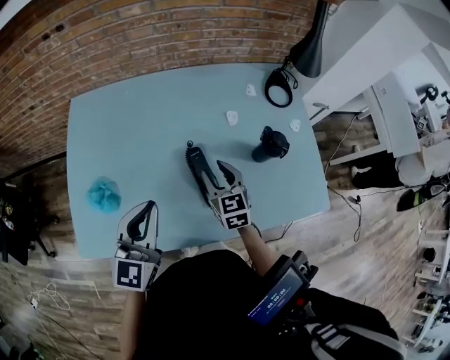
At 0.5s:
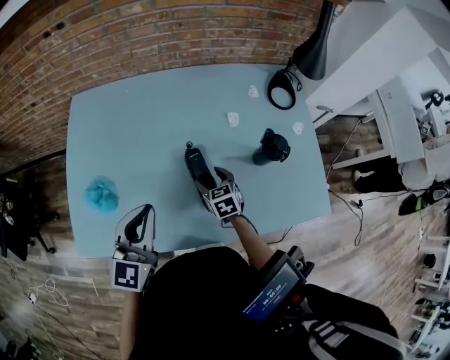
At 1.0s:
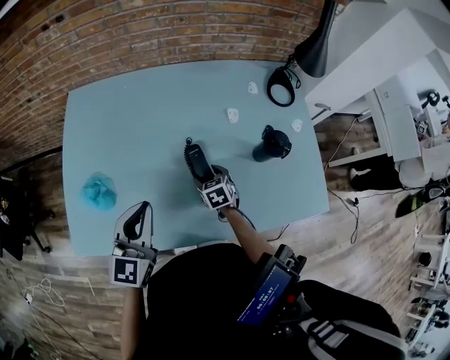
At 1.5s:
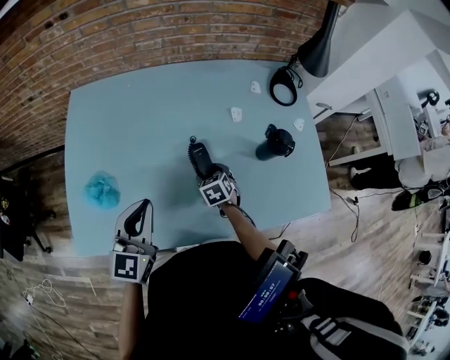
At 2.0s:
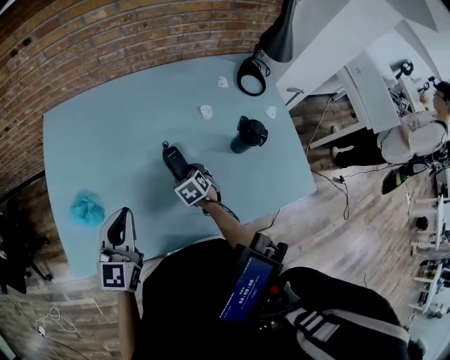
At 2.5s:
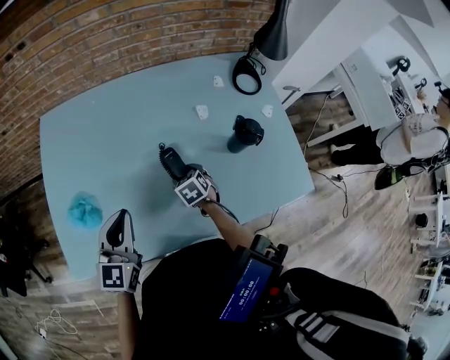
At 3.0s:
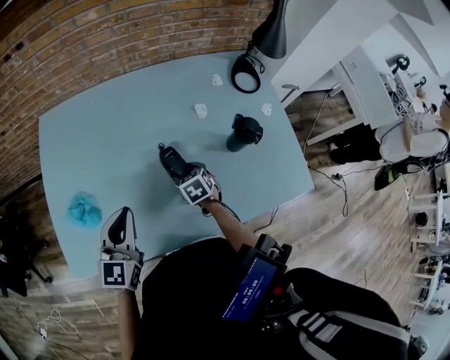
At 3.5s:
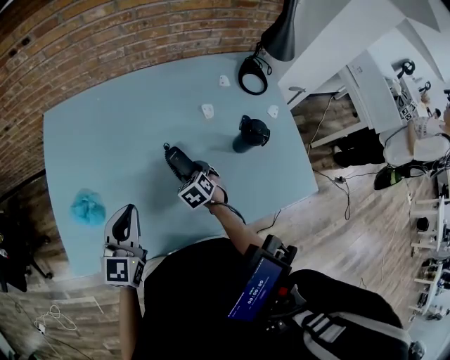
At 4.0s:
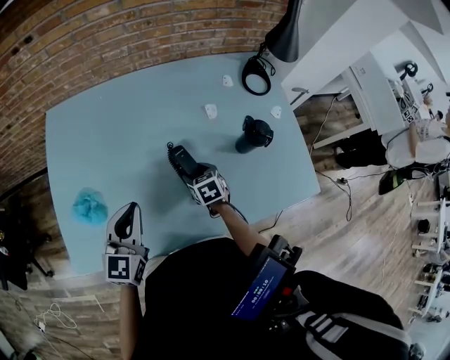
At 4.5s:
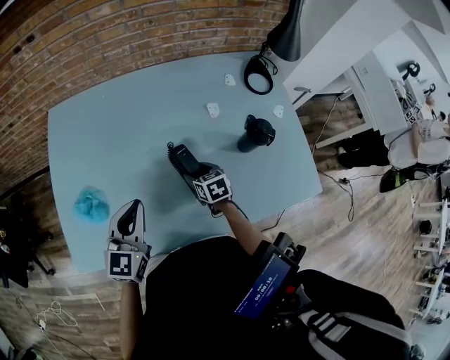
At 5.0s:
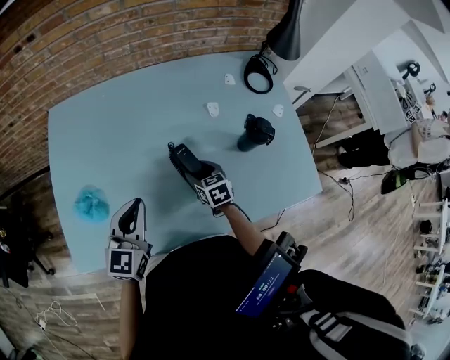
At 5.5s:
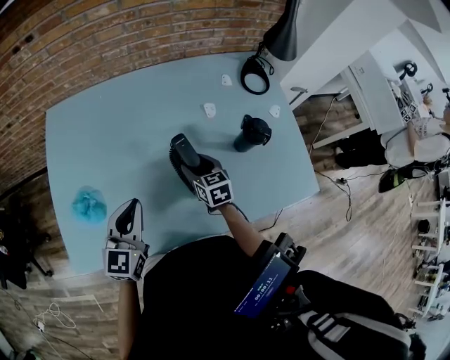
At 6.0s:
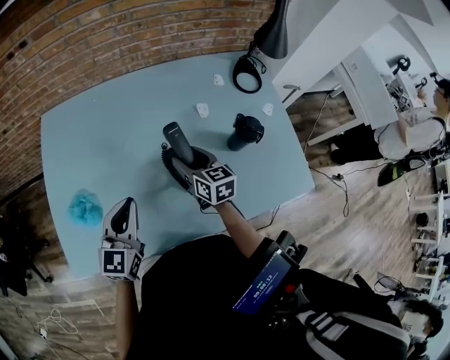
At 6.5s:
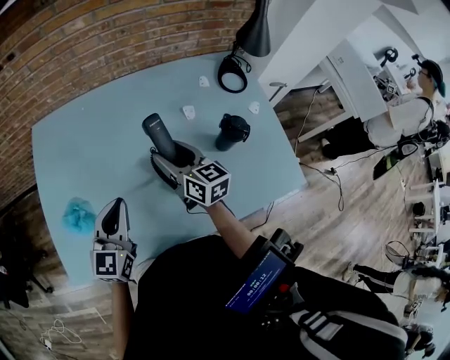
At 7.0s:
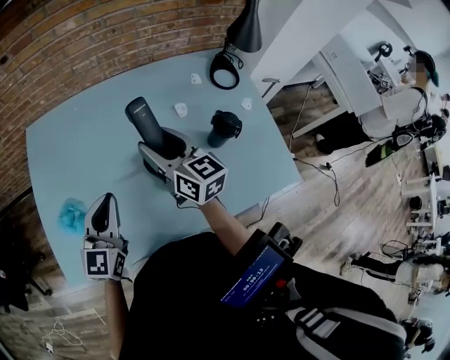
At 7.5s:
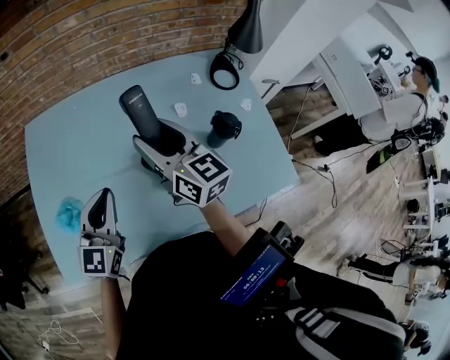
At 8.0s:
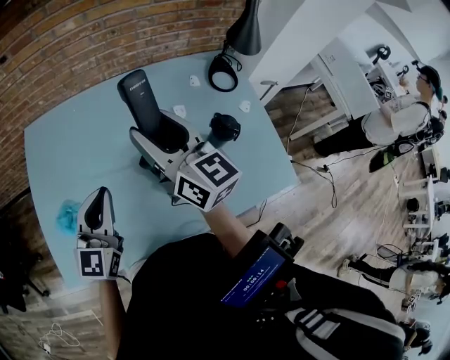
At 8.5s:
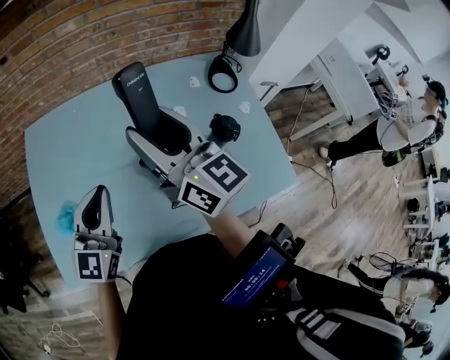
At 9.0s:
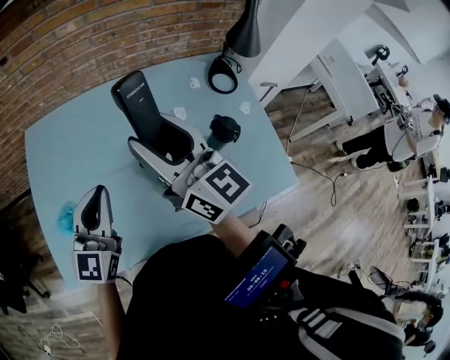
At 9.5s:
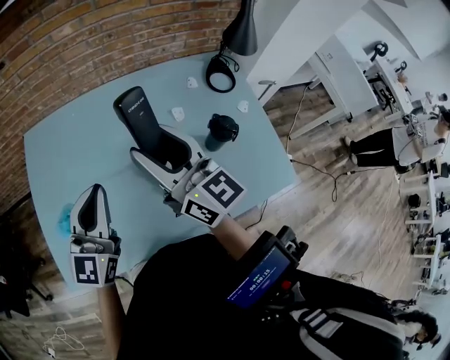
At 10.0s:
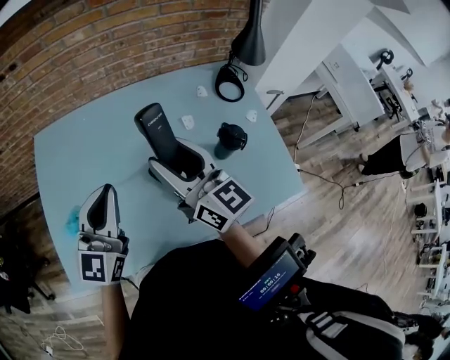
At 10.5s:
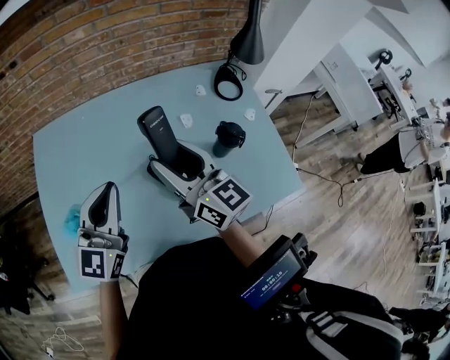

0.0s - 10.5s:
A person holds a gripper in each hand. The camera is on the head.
0.0s - 2.0s: The right gripper travels downward by about 15 cm, tips its fingers downward by some 30 degrees, and opens up. The left gripper is displaced downward by some 5 cm.
2.0s - 4.0s: The grippers make only small movements.
4.0s - 6.5s: The right gripper moves upward, approximately 20 cm, and tips its fingers upward by some 40 degrees.
6.5s - 8.5s: The right gripper moves upward, roughly 20 cm, and turns by some 20 degrees. Meanwhile the left gripper moves upward, some 10 cm.
8.5s - 10.5s: The right gripper heads downward, covering about 5 cm.

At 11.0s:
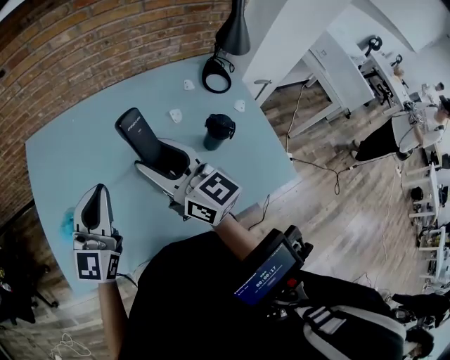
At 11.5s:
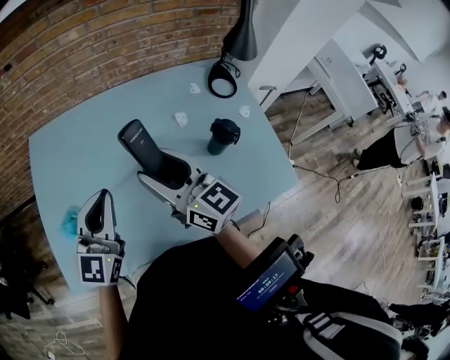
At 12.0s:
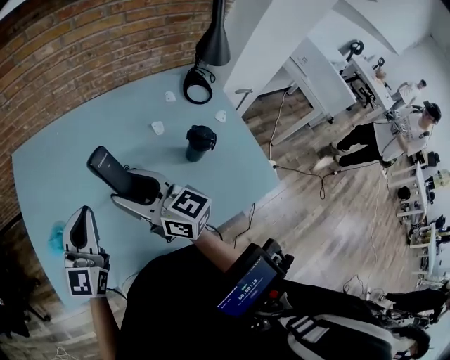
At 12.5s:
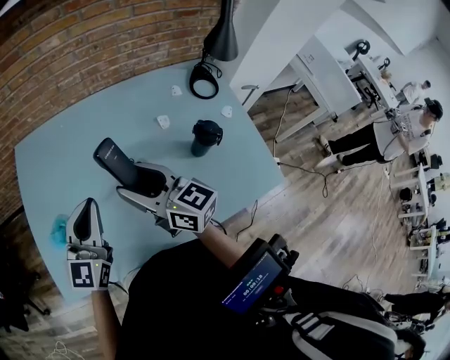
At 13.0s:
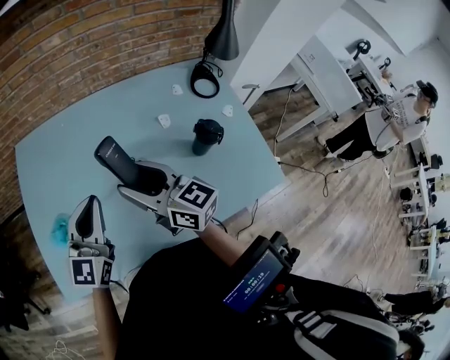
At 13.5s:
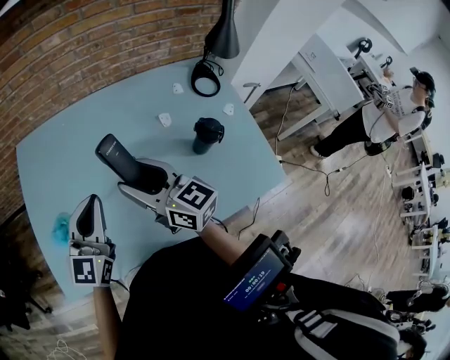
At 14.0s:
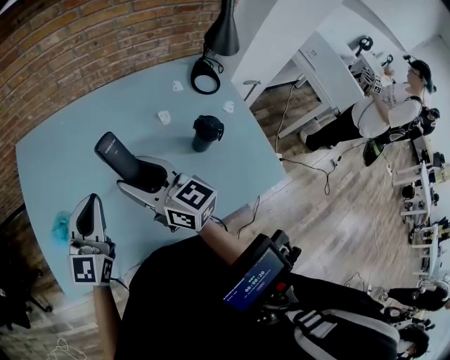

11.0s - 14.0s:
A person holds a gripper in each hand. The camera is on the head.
11.0s - 12.5s: The right gripper moves approximately 5 cm.
12.5s - 14.0s: The two grippers keep their place.

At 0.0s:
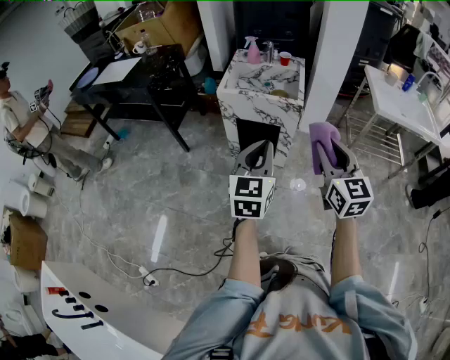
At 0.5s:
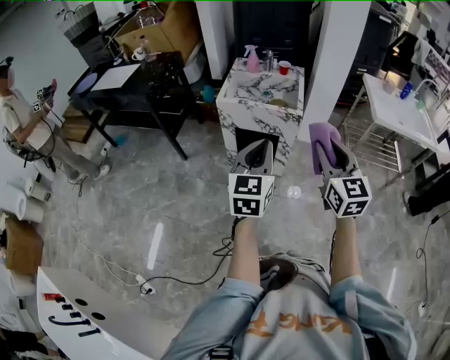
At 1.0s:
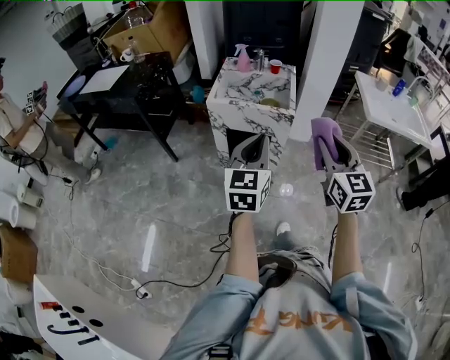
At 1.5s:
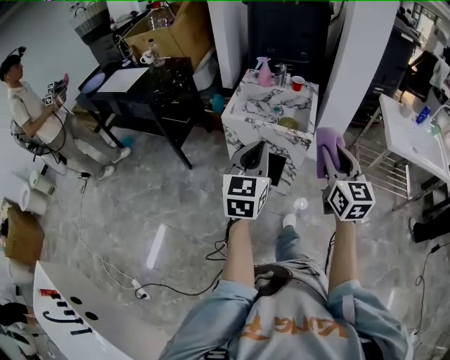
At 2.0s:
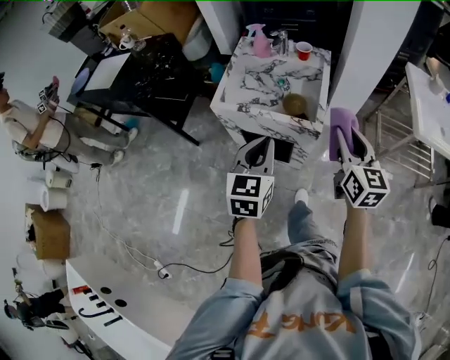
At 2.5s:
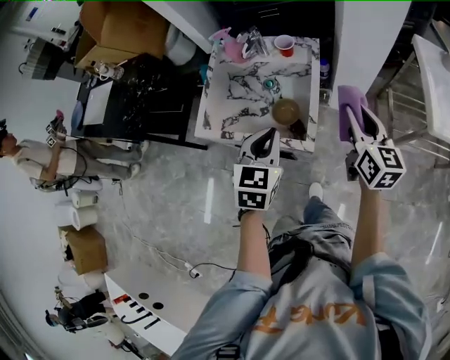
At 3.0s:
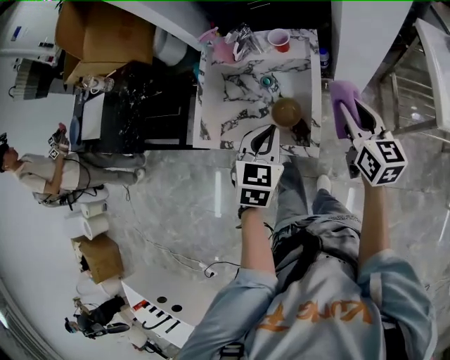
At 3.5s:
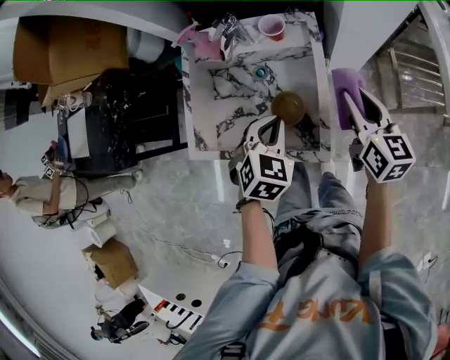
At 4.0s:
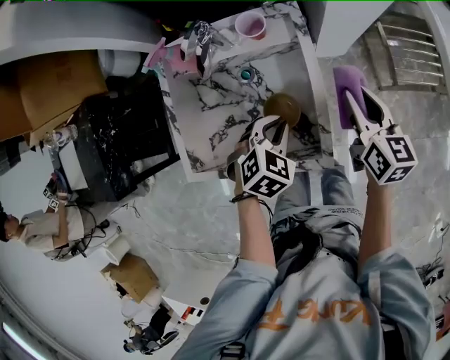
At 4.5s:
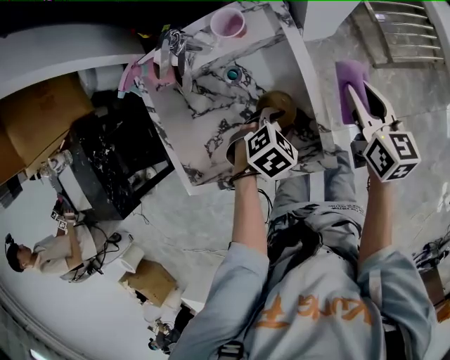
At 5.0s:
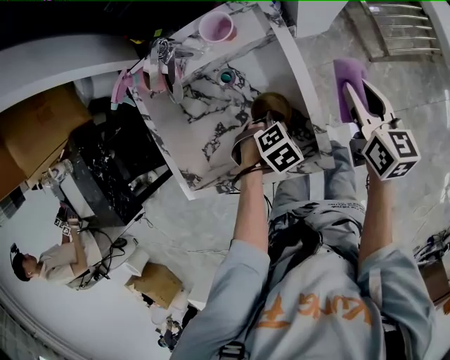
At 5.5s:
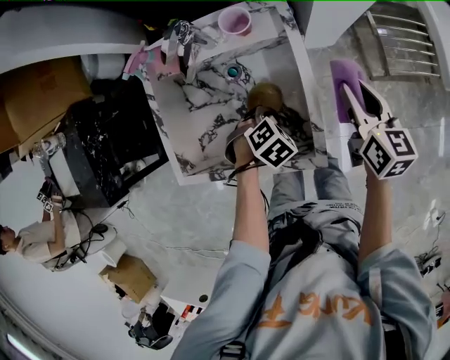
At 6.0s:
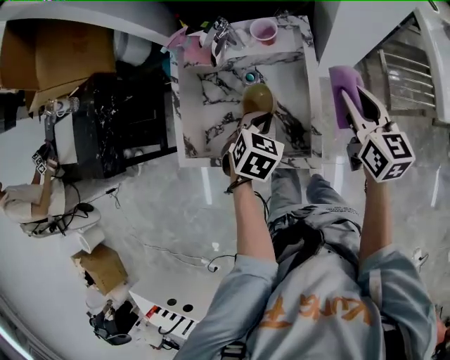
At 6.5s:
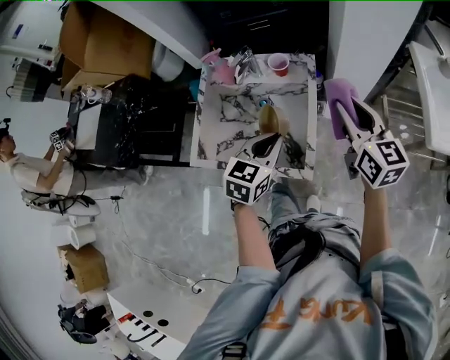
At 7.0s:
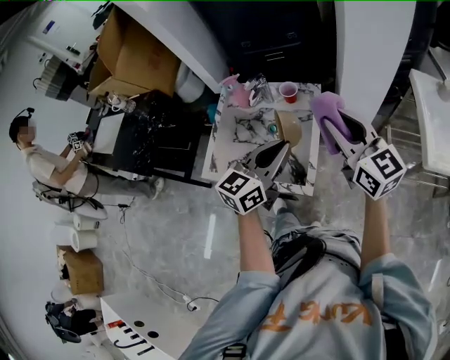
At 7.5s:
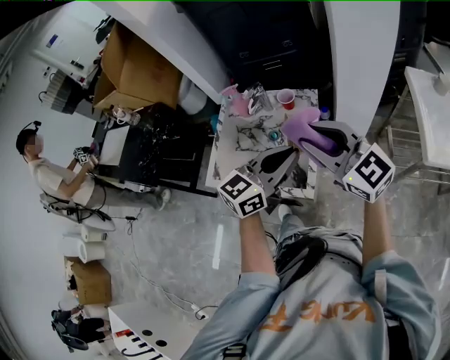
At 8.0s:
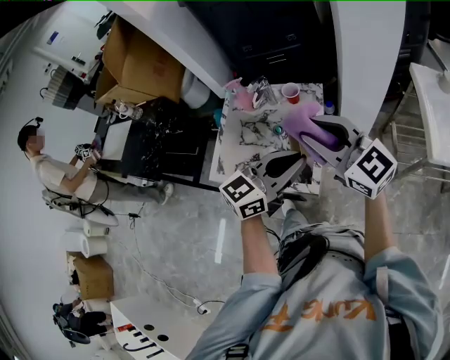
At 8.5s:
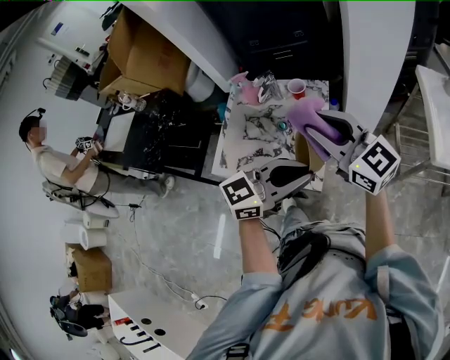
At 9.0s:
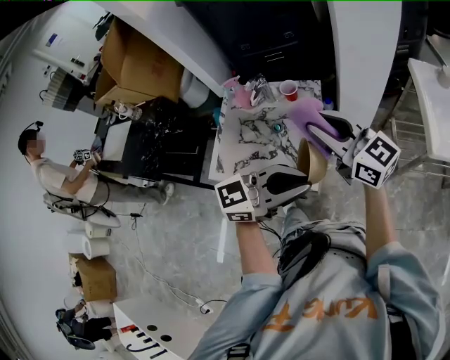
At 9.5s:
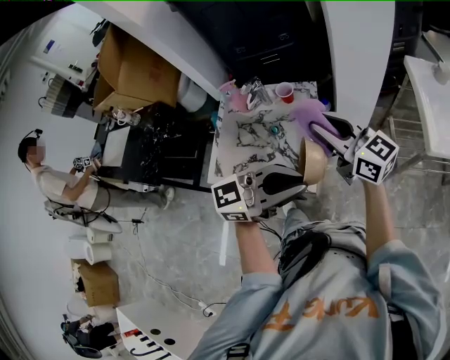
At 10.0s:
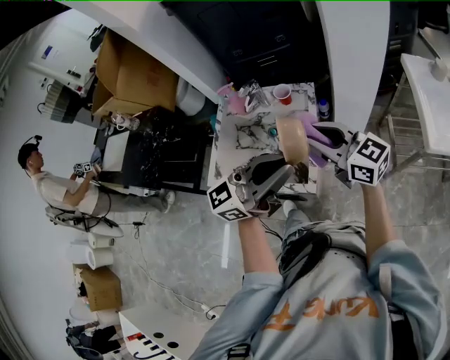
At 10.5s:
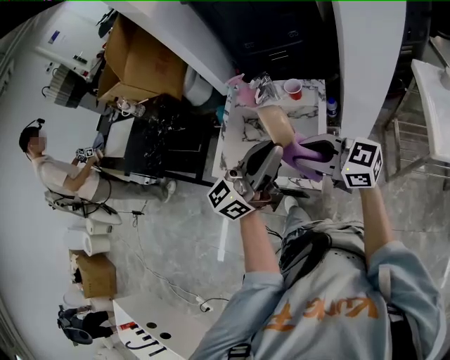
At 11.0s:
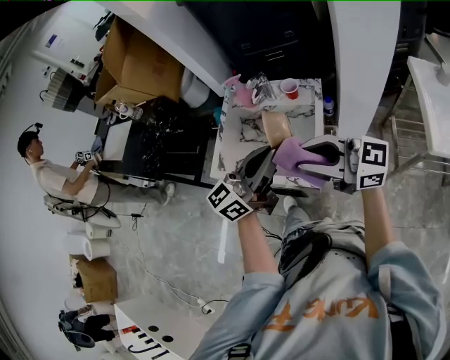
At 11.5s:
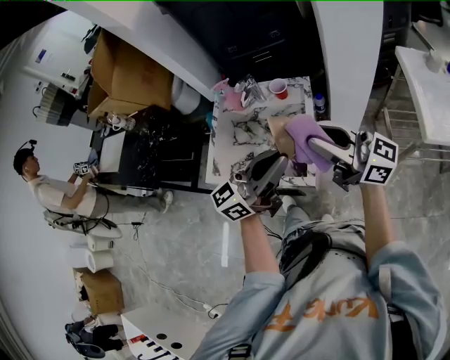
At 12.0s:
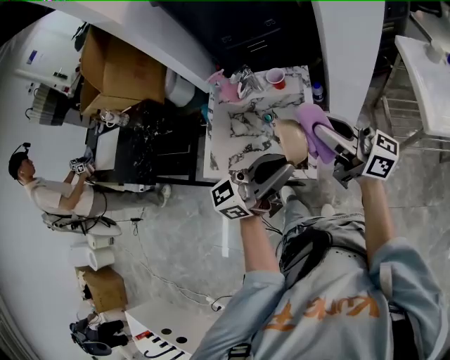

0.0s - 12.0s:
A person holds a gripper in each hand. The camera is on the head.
0.0s - 2.0s: The grippers both shift forward by approximately 30 cm.
2.0s - 4.0s: The grippers both shift forward and downward by roughly 30 cm. The right gripper swivels approximately 30 degrees, while the left gripper tilts its fingers approximately 40 degrees downward.
4.0s - 6.0s: The left gripper reaches approximately 15 cm downward, then returns, and opens and closes again; the right gripper goes roughly 5 cm upward.
6.0s - 8.0s: The right gripper travels upward, backward and to the left by roughly 25 cm, and turns by some 50 degrees, while the left gripper heads upward, covering approximately 25 cm, and tips its fingers upward by approximately 50 degrees.
8.0s - 10.0s: The right gripper travels downward by about 5 cm, while the left gripper is displaced upward by roughly 5 cm, and rotates approximately 30 degrees.
10.0s - 12.0s: The right gripper swivels approximately 30 degrees.

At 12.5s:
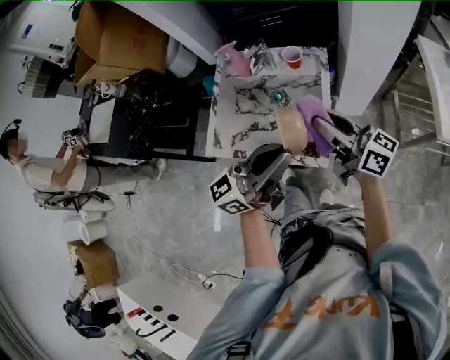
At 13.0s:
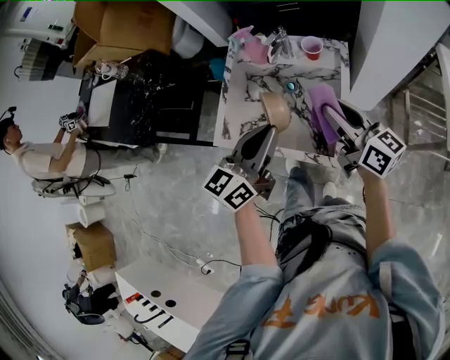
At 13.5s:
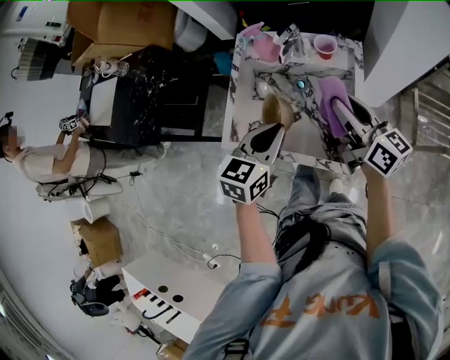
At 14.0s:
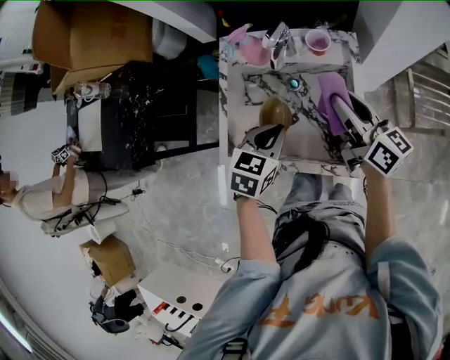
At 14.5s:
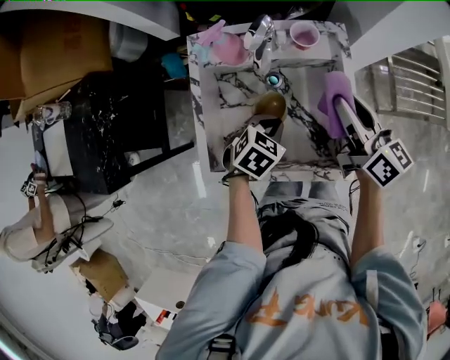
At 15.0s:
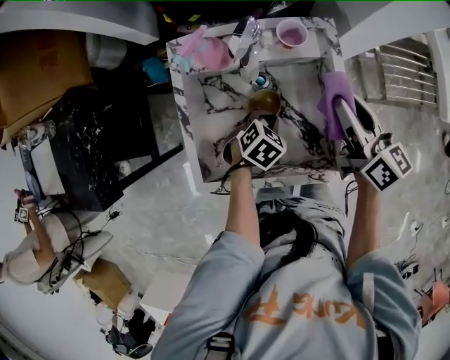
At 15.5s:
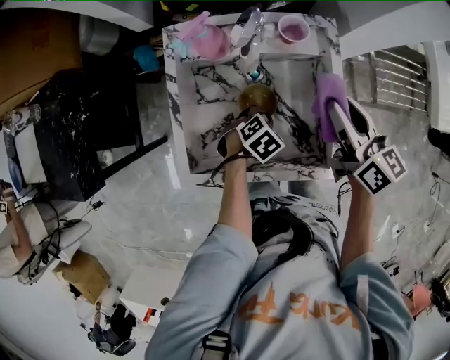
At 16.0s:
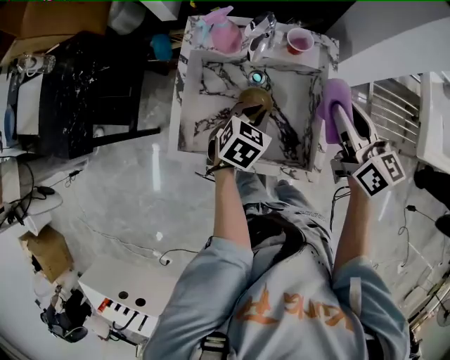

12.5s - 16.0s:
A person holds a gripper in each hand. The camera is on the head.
12.5s - 14.5s: The left gripper heads downward, covering about 30 cm, and tilts its fingers roughly 80 degrees downward; the right gripper ends up some 15 cm from where it was, and changes its angle by approximately 30 degrees.
14.5s - 16.0s: The left gripper reaches approximately 10 cm downward, then returns.
